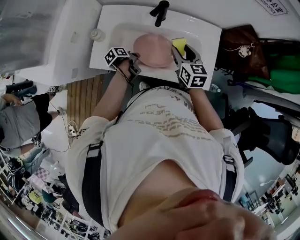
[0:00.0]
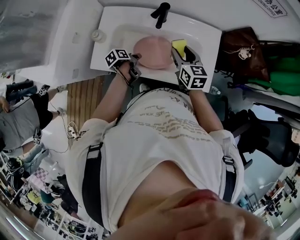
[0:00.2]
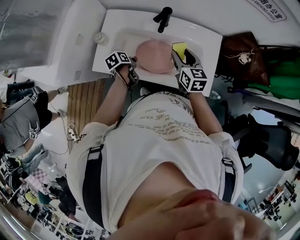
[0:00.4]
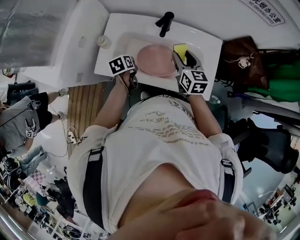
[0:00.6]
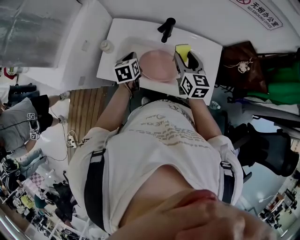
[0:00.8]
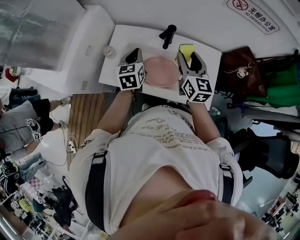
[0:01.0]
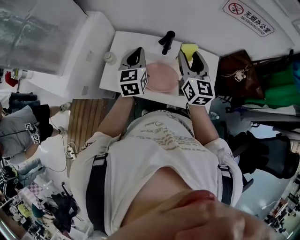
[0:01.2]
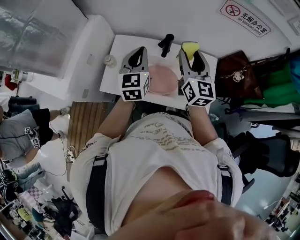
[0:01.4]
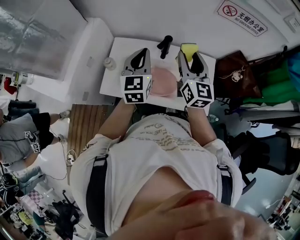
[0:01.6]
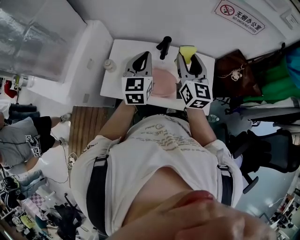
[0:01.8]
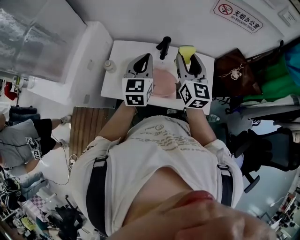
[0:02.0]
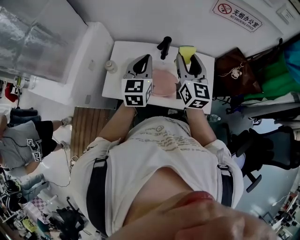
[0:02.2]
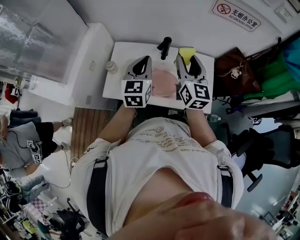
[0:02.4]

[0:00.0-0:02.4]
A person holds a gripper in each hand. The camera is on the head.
0:00.0 to 0:01.2: The right gripper goes about 15 cm upward, and rotates approximately 30 degrees, while the left gripper is displaced upward by approximately 30 cm, and tilts its fingers approximately 40 degrees upward.
0:01.2 to 0:02.4: The left gripper ends up approximately 5 cm from where it was.

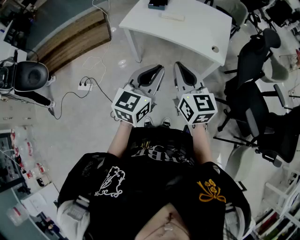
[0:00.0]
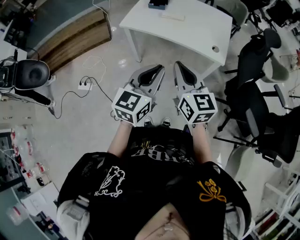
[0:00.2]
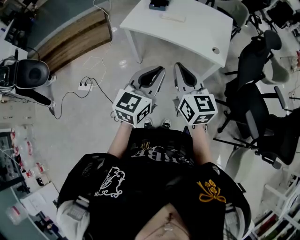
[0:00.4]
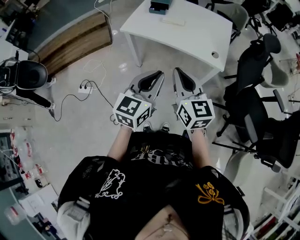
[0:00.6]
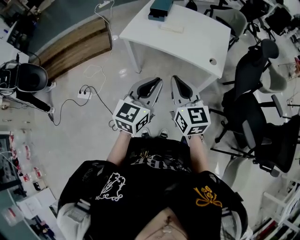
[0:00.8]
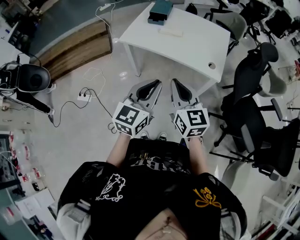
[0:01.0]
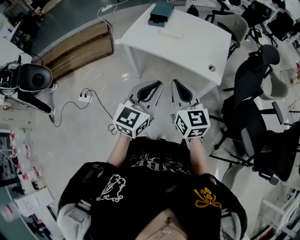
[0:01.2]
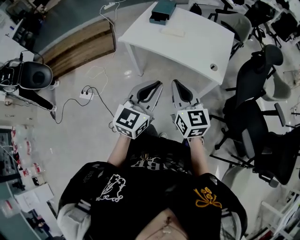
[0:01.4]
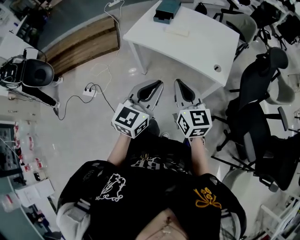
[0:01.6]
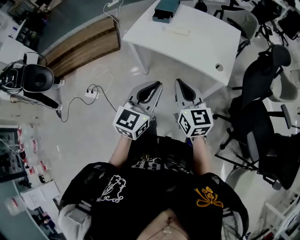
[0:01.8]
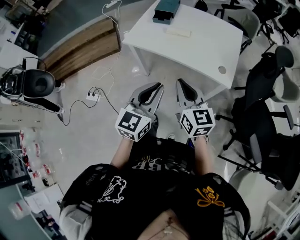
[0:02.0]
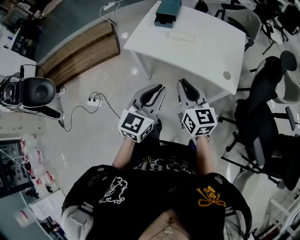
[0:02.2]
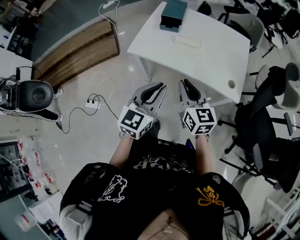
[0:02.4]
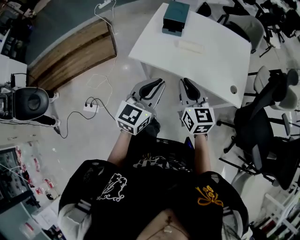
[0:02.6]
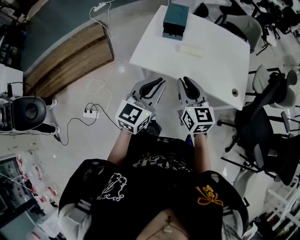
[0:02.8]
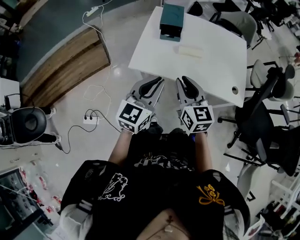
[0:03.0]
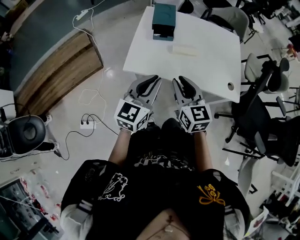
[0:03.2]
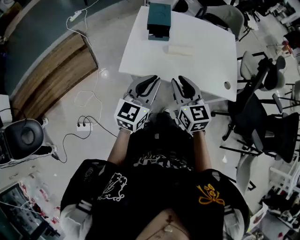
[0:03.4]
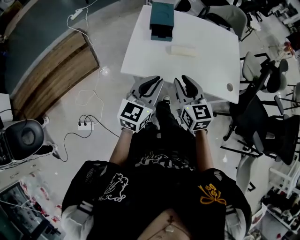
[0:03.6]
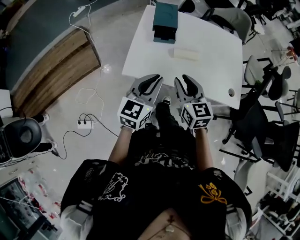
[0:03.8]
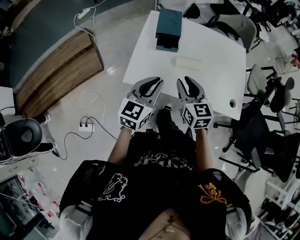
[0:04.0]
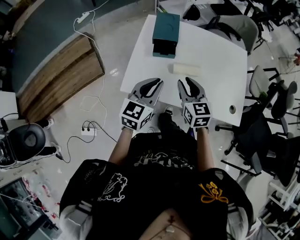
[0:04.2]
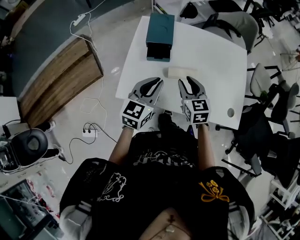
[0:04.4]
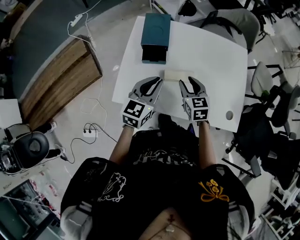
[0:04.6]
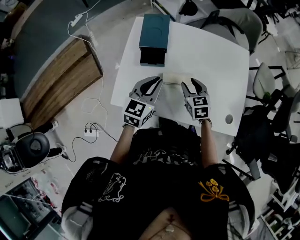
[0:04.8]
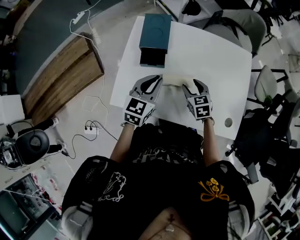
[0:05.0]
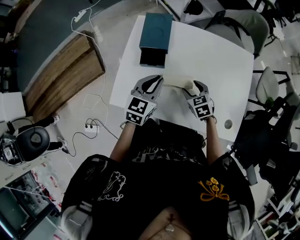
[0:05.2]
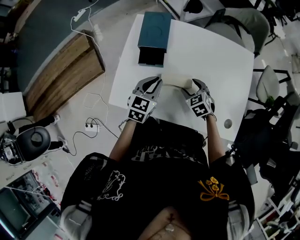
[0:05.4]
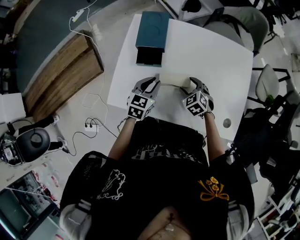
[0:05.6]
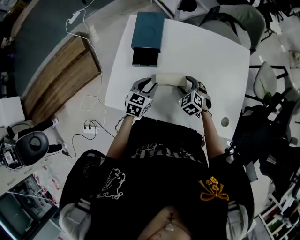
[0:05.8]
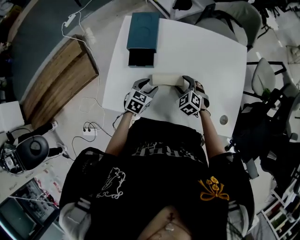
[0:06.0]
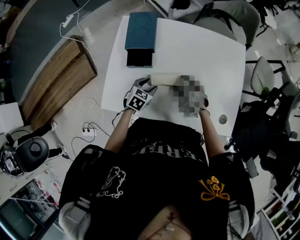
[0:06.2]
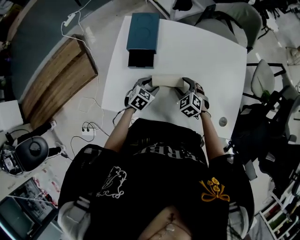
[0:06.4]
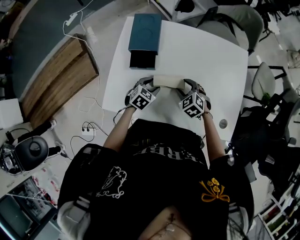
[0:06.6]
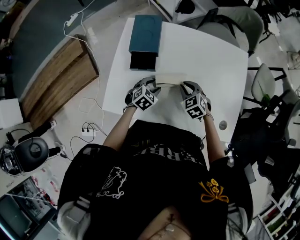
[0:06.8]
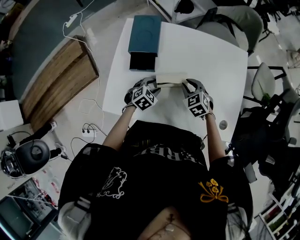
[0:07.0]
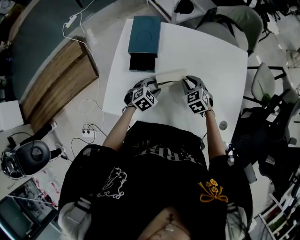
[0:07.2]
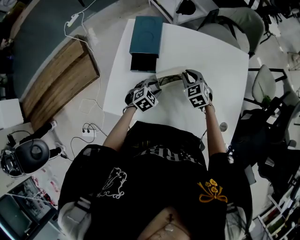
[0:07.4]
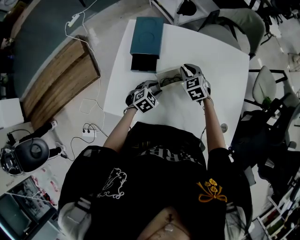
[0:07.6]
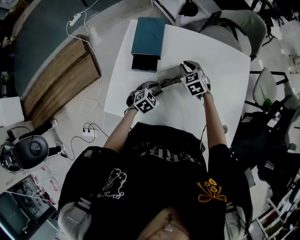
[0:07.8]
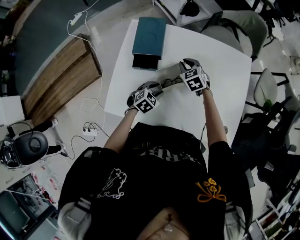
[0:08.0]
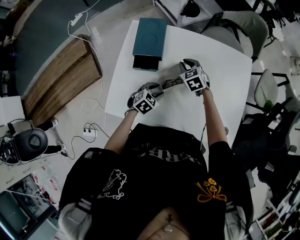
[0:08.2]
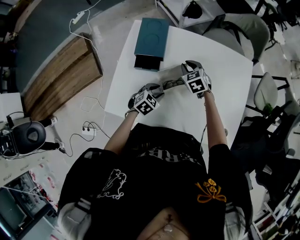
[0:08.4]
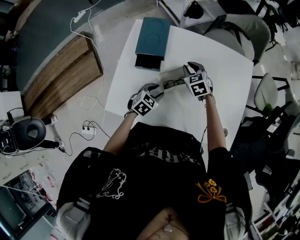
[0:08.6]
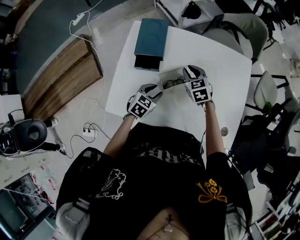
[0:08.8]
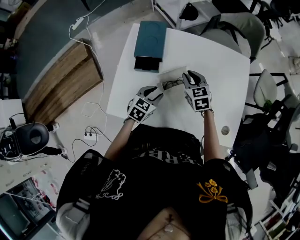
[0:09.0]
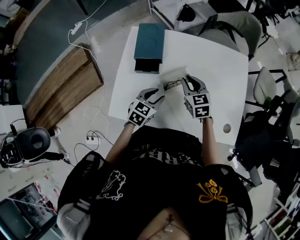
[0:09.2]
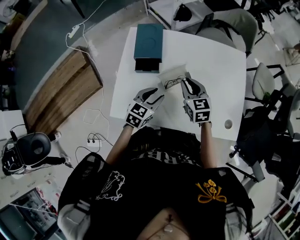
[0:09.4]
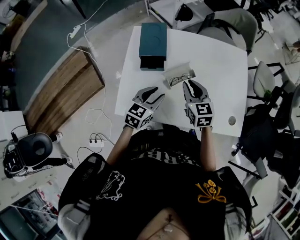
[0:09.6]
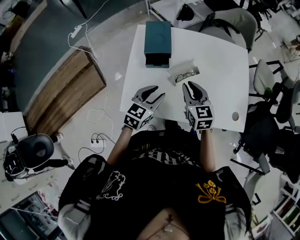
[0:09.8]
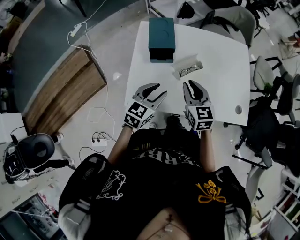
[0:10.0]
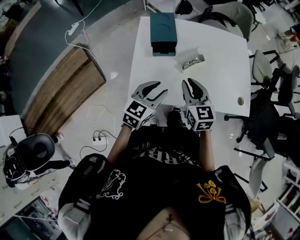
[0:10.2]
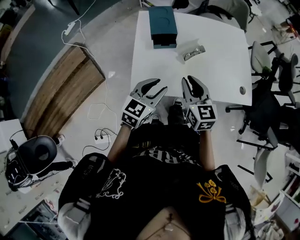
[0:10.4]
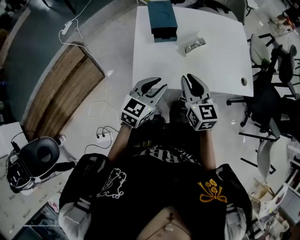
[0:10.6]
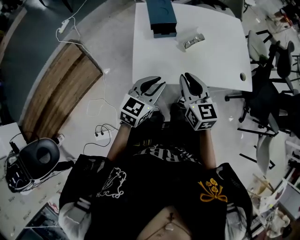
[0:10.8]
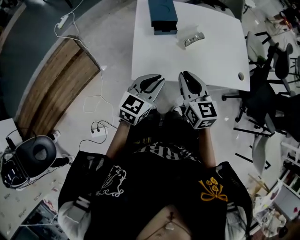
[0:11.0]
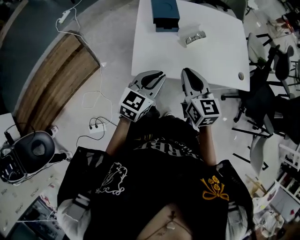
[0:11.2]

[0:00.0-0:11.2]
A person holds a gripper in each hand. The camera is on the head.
0:00.0 to 0:01.6: The right gripper travels forward by about 5 cm. The left gripper changes place by roughly 5 cm.
0:01.6 to 0:03.2: Both grippers travel together forward and to the left, roughly 35 cm.
0:03.2 to 0:04.8: The left gripper shifts about 30 cm forward. Meanwhile the right gripper shifts roughly 35 cm forward, downward and to the right, and changes its angle by roughly 20 degrees.
0:04.8 to 0:06.4: The left gripper moves downward, some 20 cm, changes its angle by some 30 degrees, and opens up. The right gripper goes approximately 10 cm downward, and swivels some 40 degrees.
0:06.4 to 0:08.0: The right gripper goes approximately 15 cm forward, and closes.
0:08.0 to 0:09.6: The right gripper shifts about 20 cm backward and upward, and changes its angle by approximately 30 degrees. Meanwhile the left gripper goes approximately 15 cm upward and backward, and rotates some 30 degrees.
0:09.6 to 0:11.2: Both grippers move backward and to the left, about 25 cm. The left gripper closes.

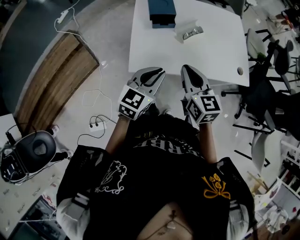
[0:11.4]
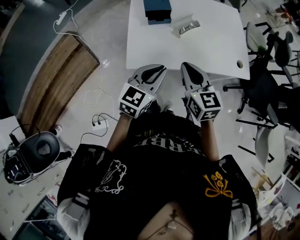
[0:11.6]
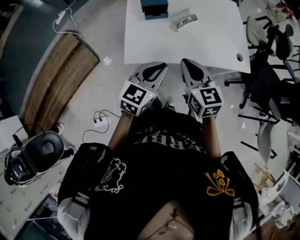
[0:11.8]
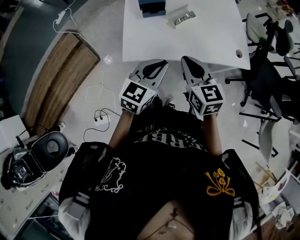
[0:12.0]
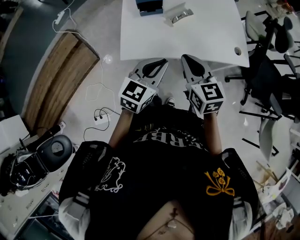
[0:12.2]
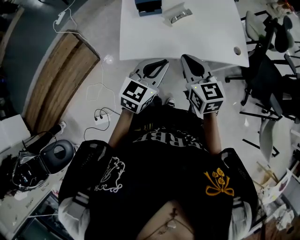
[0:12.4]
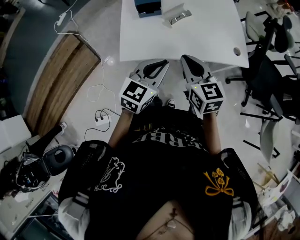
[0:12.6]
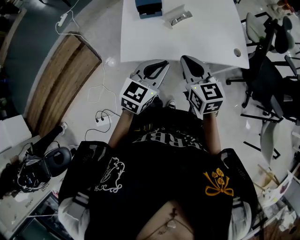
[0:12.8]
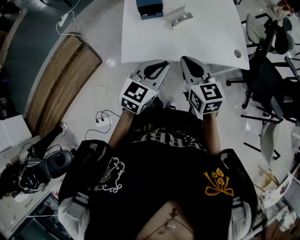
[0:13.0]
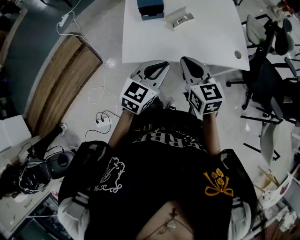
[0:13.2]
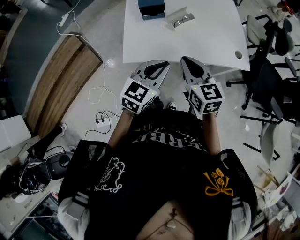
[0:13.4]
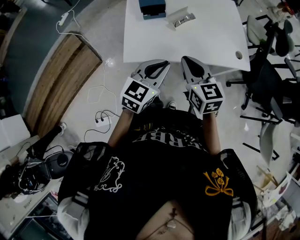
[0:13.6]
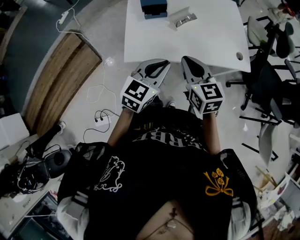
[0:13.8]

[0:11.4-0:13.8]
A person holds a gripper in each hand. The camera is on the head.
0:11.4 to 0:12.6: The grippers both shift to the right by approximately 10 cm.
0:12.6 to 0:13.8: The grippers move only a little.

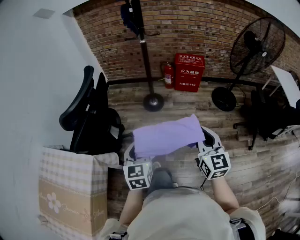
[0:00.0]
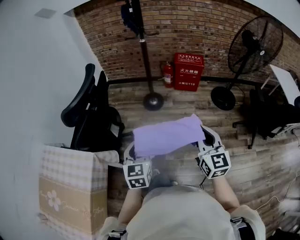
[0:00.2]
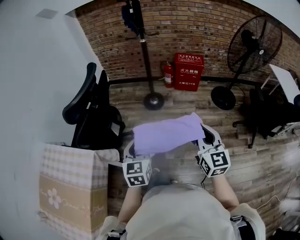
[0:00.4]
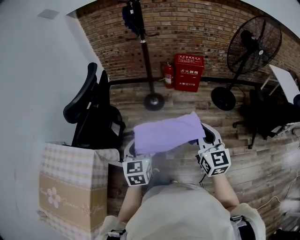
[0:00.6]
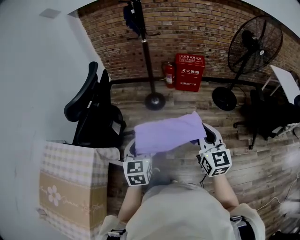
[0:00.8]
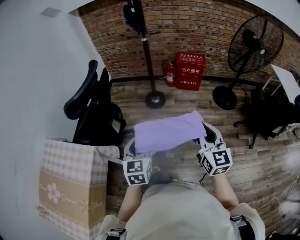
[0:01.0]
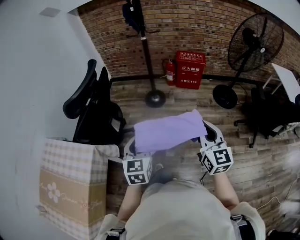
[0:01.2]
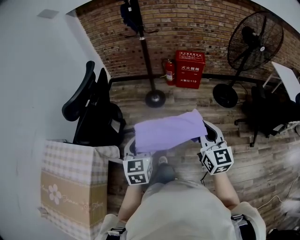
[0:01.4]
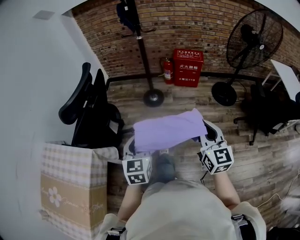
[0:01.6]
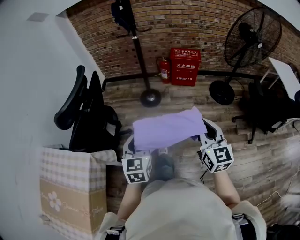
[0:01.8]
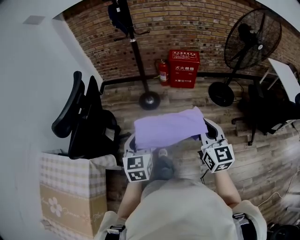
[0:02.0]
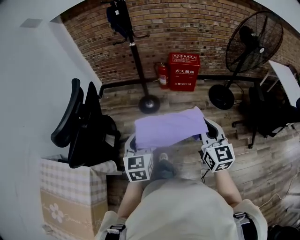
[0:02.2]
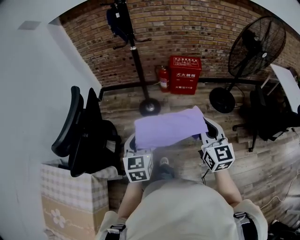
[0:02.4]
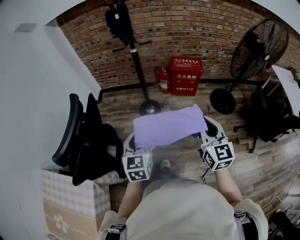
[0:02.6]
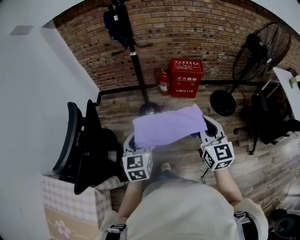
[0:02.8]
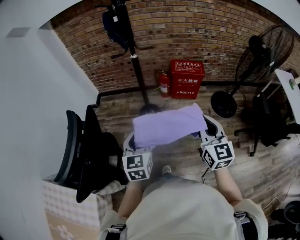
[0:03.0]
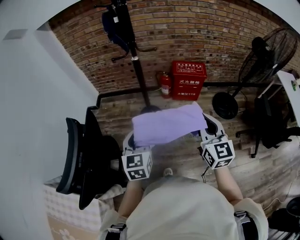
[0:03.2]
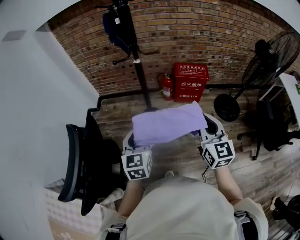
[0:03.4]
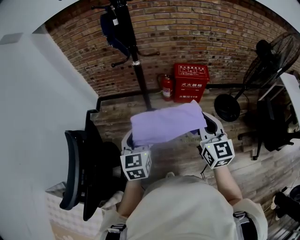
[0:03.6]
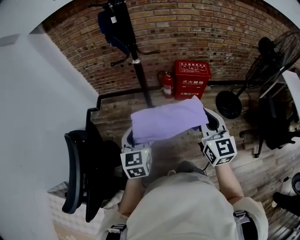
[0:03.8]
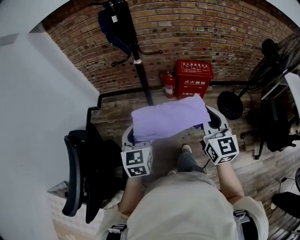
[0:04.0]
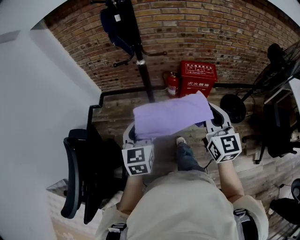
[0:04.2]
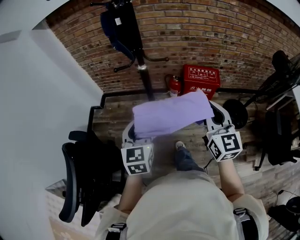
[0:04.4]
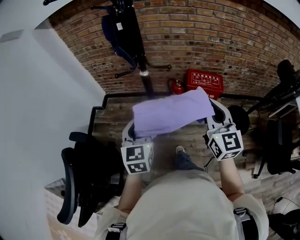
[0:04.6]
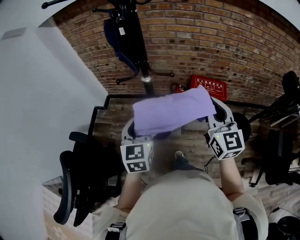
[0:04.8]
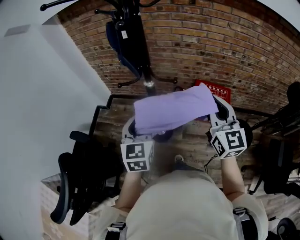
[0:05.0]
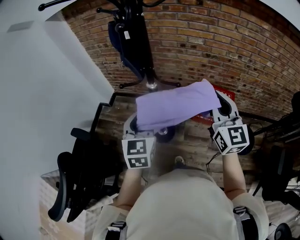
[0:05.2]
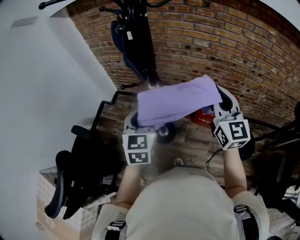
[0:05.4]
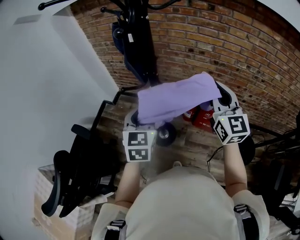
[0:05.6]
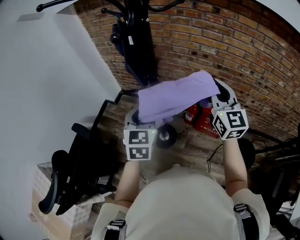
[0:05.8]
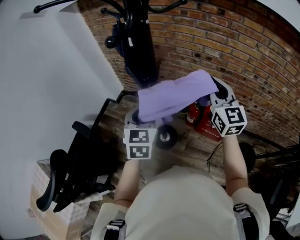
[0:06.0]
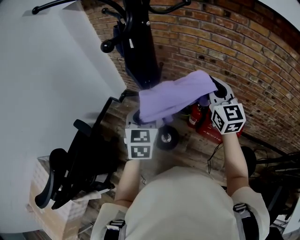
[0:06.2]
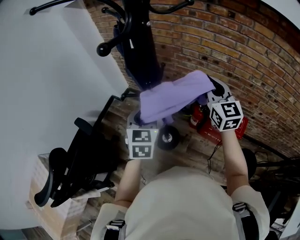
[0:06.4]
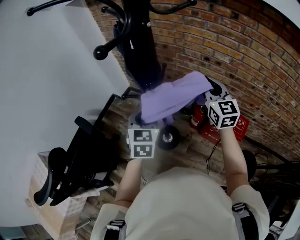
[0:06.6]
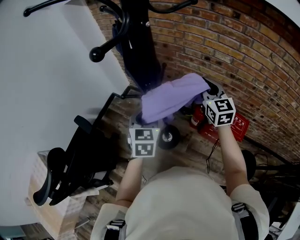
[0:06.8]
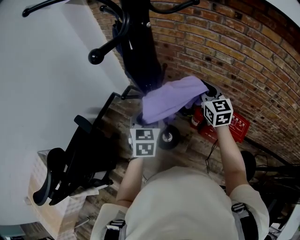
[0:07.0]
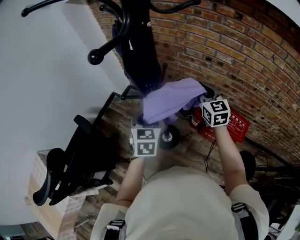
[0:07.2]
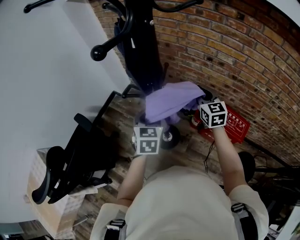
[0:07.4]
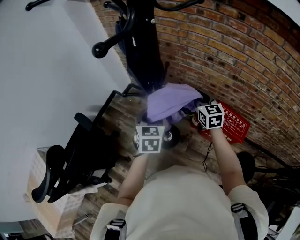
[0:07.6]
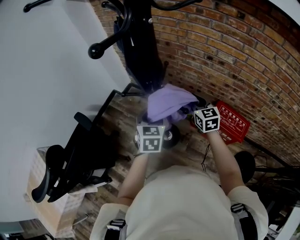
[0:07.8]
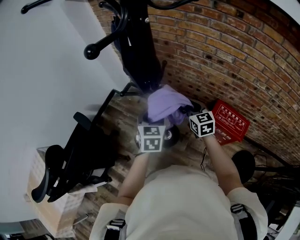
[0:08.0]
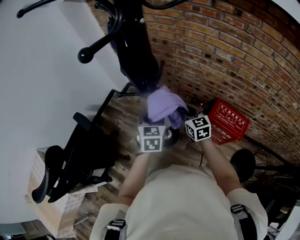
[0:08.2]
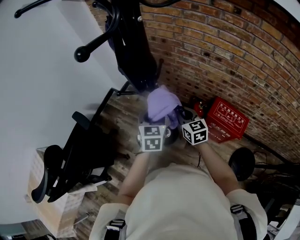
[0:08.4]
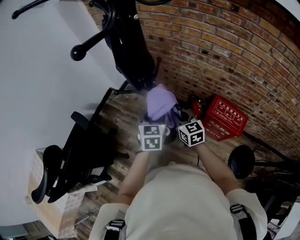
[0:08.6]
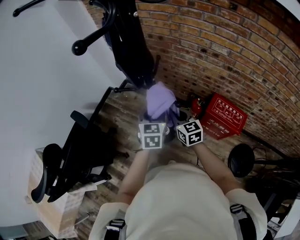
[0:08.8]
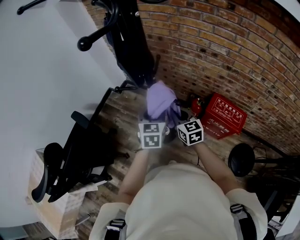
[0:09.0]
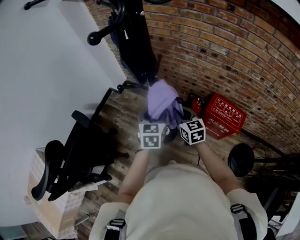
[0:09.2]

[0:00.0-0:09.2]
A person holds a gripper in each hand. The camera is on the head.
0:00.0 to 0:01.6: The grippers move only a little.
0:01.6 to 0:03.0: Both grippers travel together forward, some 25 cm.
0:03.0 to 0:04.6: The grippers both shift forward by some 25 cm.
0:04.6 to 0:06.2: The right gripper shifts some 30 cm forward, and changes its angle by roughly 20 degrees. The left gripper goes approximately 20 cm forward.
0:06.2 to 0:07.6: The left gripper goes about 10 cm downward; the right gripper goes about 20 cm downward and forward.
0:07.6 to 0:09.2: The right gripper moves backward, to the left and downward, about 15 cm.
